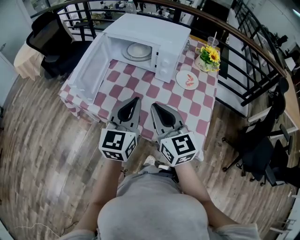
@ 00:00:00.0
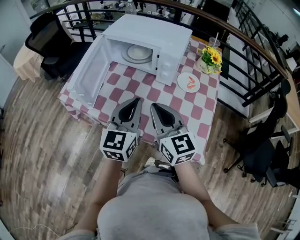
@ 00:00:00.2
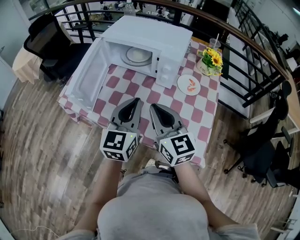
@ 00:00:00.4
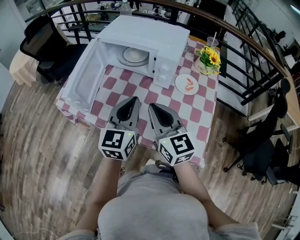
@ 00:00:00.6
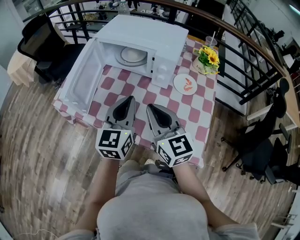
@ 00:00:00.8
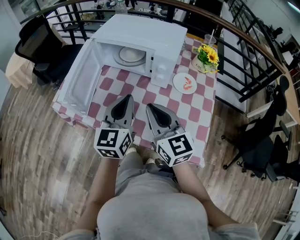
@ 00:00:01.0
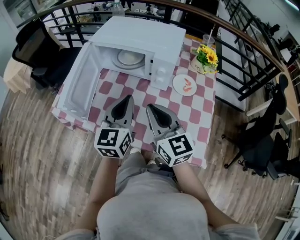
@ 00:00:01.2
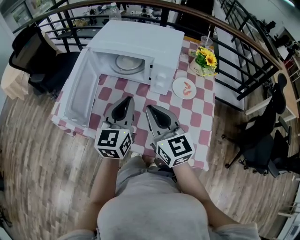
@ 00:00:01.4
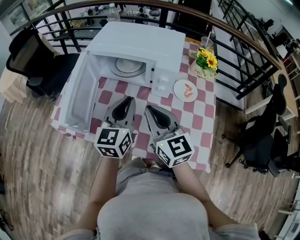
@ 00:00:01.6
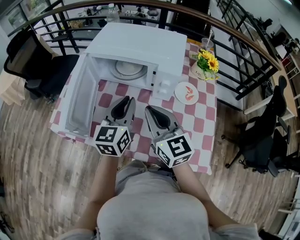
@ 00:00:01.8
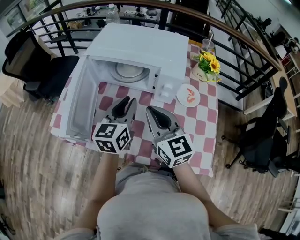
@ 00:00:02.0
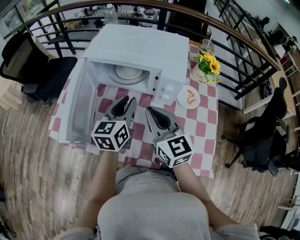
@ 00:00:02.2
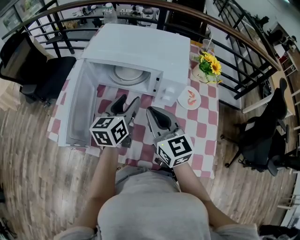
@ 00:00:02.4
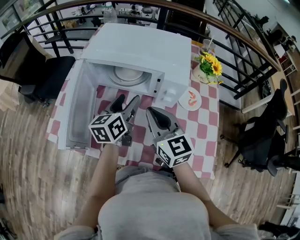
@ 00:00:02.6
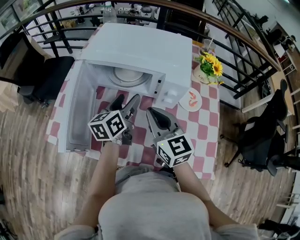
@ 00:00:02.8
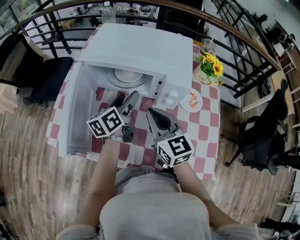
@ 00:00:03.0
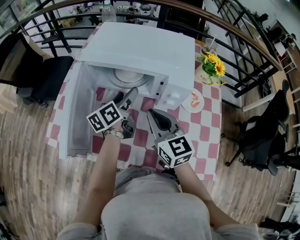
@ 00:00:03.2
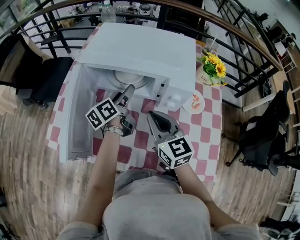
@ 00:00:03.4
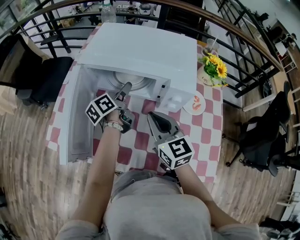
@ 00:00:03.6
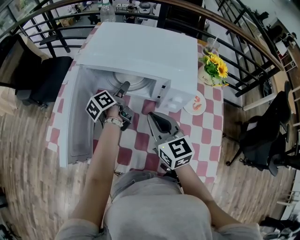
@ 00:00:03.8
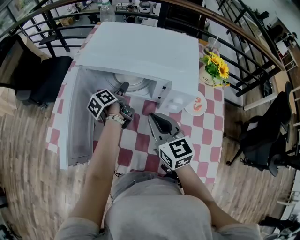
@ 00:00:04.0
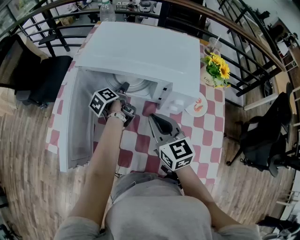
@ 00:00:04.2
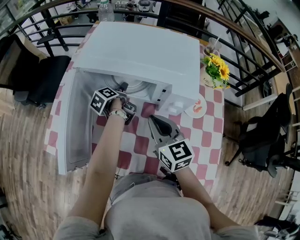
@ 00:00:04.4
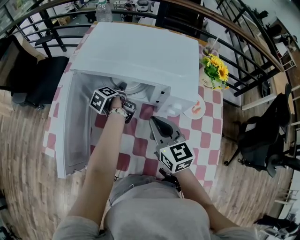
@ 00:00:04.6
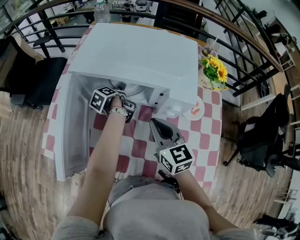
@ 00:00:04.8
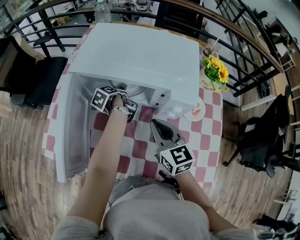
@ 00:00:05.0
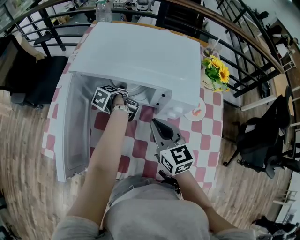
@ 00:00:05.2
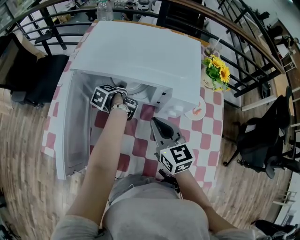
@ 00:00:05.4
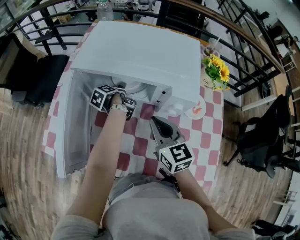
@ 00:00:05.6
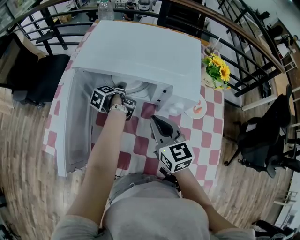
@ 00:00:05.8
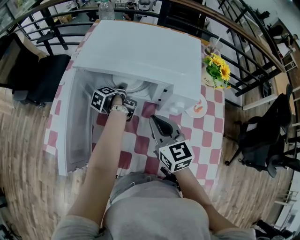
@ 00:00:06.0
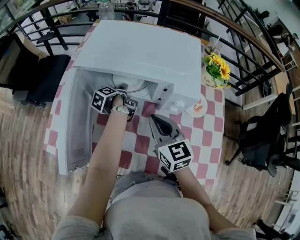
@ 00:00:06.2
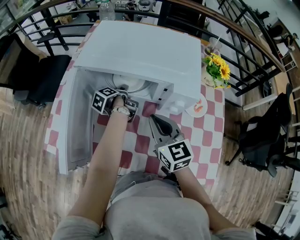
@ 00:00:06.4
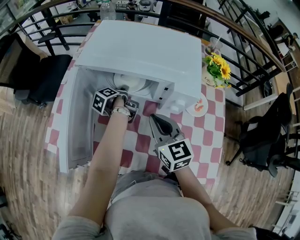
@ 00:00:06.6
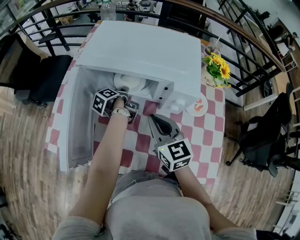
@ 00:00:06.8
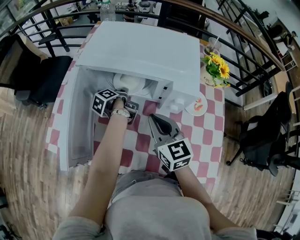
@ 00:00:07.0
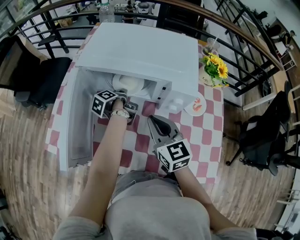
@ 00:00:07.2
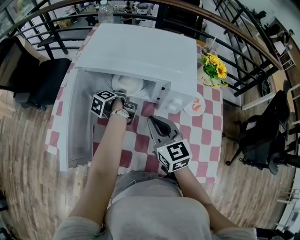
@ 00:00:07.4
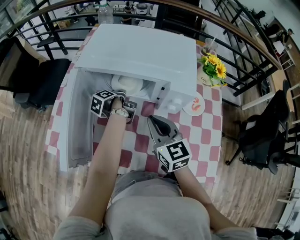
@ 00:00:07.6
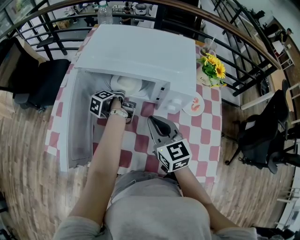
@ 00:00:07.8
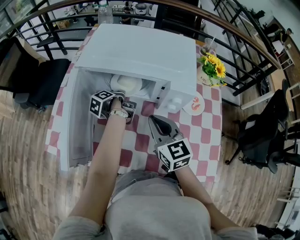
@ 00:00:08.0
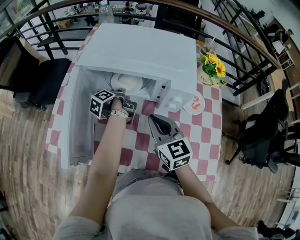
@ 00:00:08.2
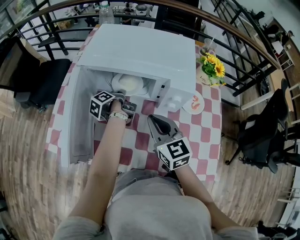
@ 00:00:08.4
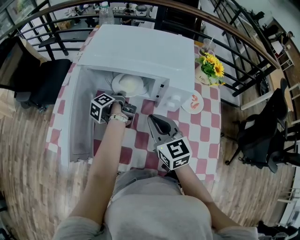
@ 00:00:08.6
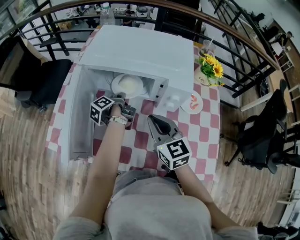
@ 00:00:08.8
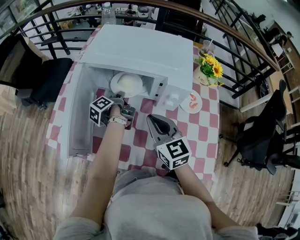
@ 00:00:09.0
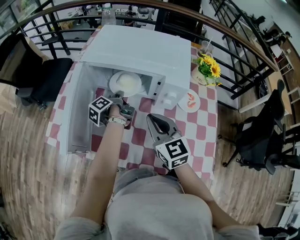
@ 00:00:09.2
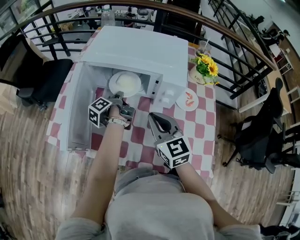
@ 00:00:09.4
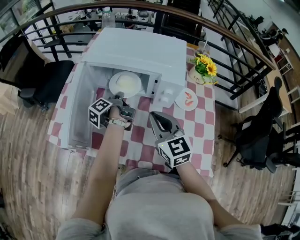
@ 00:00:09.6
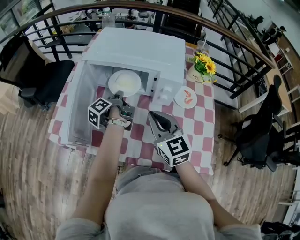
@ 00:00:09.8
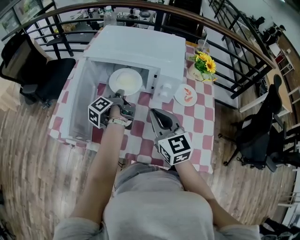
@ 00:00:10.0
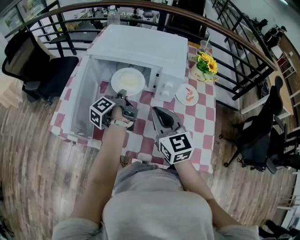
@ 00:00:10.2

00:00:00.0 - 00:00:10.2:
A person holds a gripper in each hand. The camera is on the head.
00:00:00.0 - 00:00:01.4: Both grippers move forward, about 10 cm.
00:00:01.4 - 00:00:03.0: The right gripper goes some 10 cm forward. Meanwhile the left gripper is displaced forward and downward by roughly 20 cm, rotates about 40 degrees, and opens.
00:00:03.0 - 00:00:04.4: The left gripper travels downward and forward by about 15 cm, and rotates roughly 50 degrees. Meanwhile the right gripper shifts by about 5 cm.
00:00:04.4 - 00:00:05.8: The grippers move only a little.
00:00:05.8 - 00:00:07.2: The left gripper closes.
00:00:07.2 - 00:00:08.8: The grippers move only a little.
00:00:08.8 - 00:00:10.2: The left gripper goes approximately 10 cm backward and upward. Meanwhile the right gripper moves backward, about 5 cm.

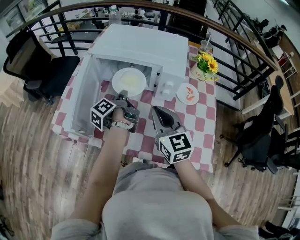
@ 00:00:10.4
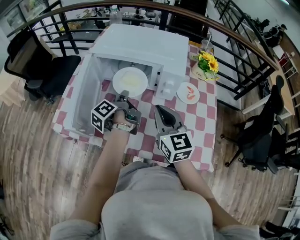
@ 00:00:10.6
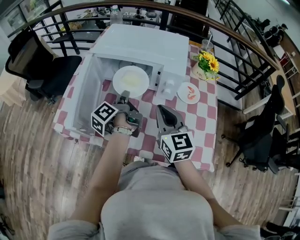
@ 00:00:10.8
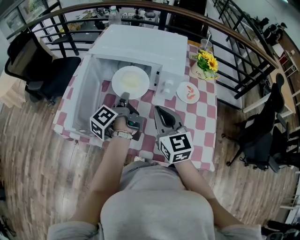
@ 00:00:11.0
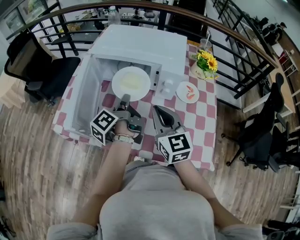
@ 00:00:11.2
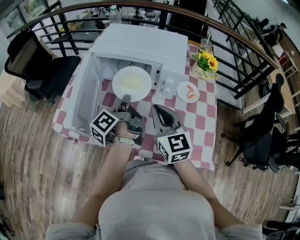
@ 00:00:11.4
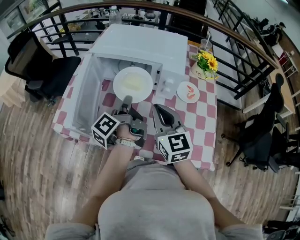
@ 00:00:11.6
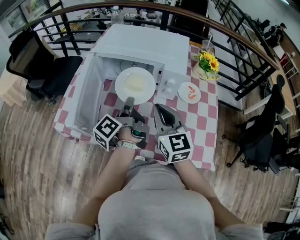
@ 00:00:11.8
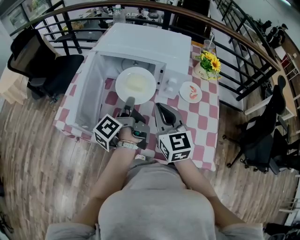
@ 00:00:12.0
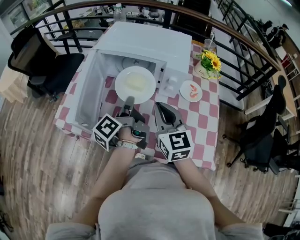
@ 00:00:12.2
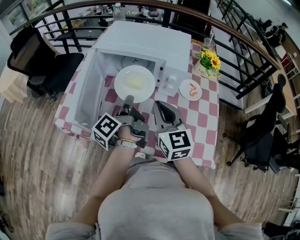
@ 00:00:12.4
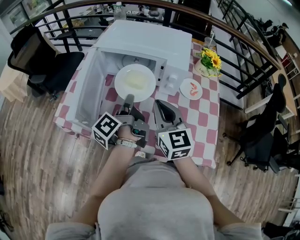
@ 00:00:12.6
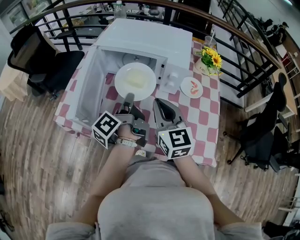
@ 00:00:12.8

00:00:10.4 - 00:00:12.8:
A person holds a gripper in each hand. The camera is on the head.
00:00:10.4 - 00:00:11.6: The left gripper moves backward and upward, roughly 10 cm.
00:00:11.6 - 00:00:12.8: There are only small adjustments of the grippers.

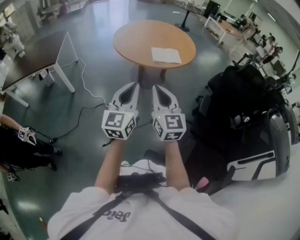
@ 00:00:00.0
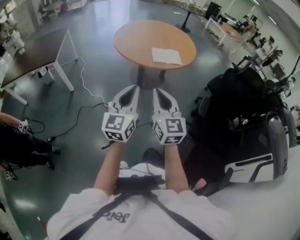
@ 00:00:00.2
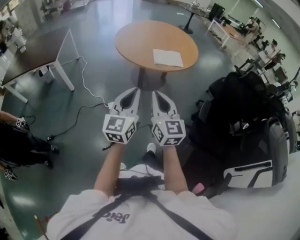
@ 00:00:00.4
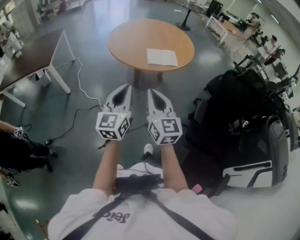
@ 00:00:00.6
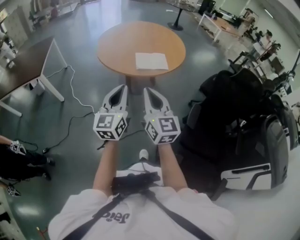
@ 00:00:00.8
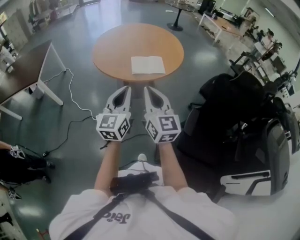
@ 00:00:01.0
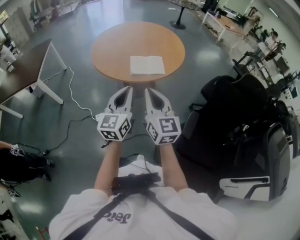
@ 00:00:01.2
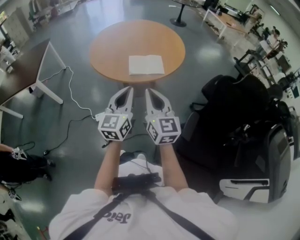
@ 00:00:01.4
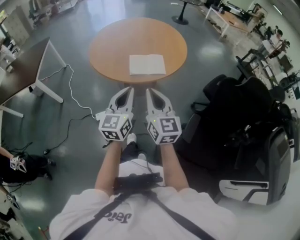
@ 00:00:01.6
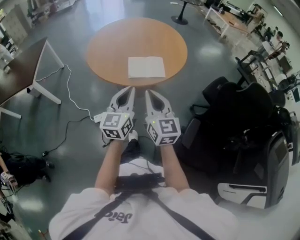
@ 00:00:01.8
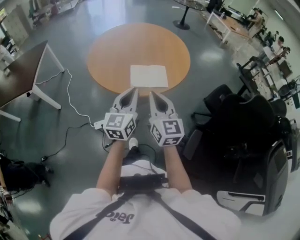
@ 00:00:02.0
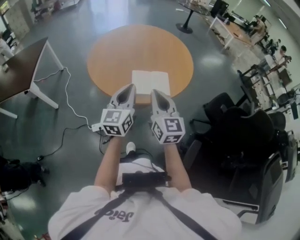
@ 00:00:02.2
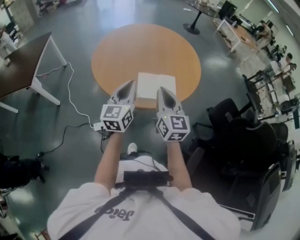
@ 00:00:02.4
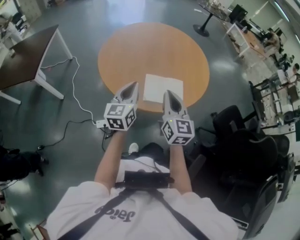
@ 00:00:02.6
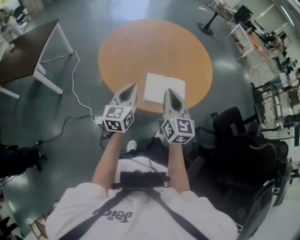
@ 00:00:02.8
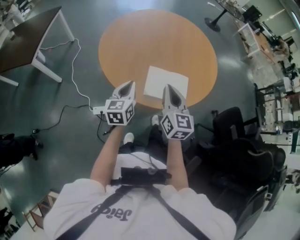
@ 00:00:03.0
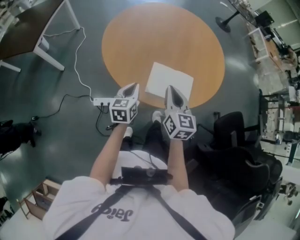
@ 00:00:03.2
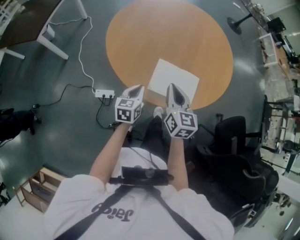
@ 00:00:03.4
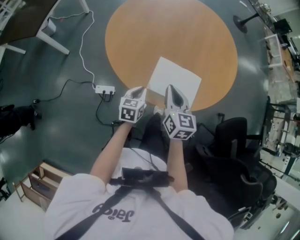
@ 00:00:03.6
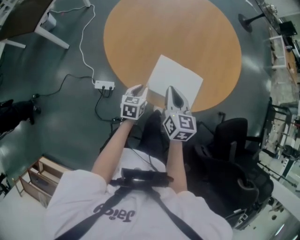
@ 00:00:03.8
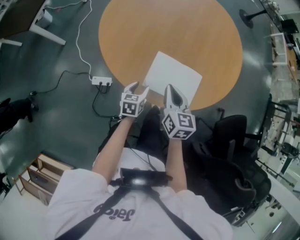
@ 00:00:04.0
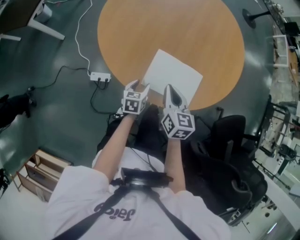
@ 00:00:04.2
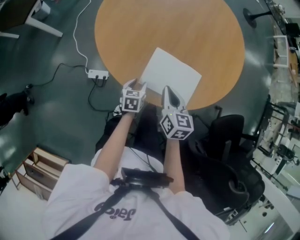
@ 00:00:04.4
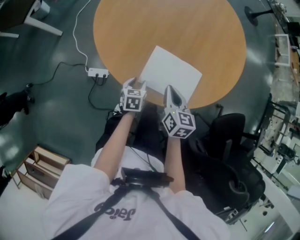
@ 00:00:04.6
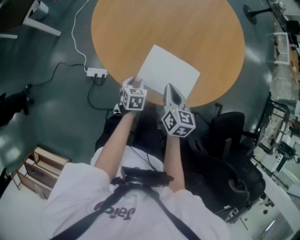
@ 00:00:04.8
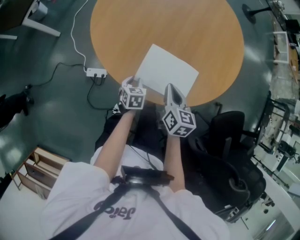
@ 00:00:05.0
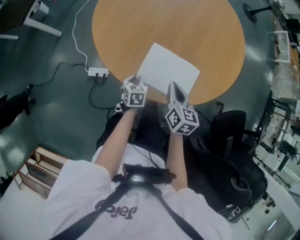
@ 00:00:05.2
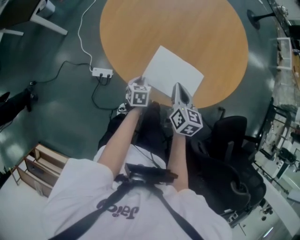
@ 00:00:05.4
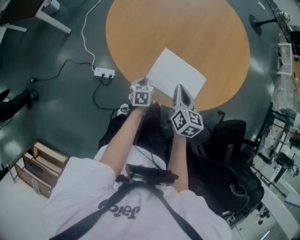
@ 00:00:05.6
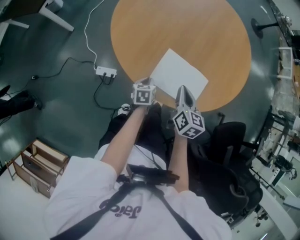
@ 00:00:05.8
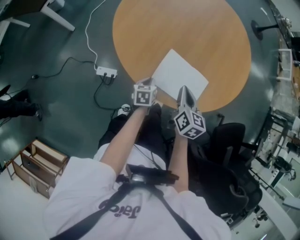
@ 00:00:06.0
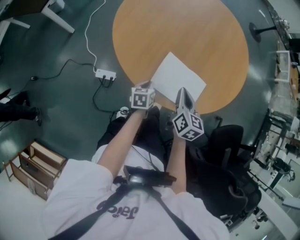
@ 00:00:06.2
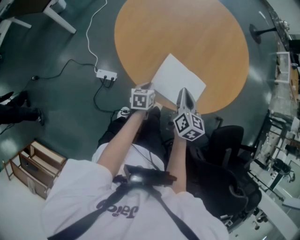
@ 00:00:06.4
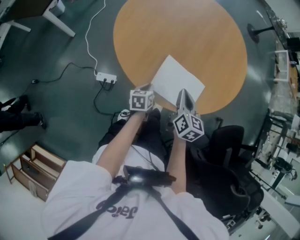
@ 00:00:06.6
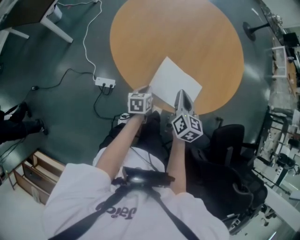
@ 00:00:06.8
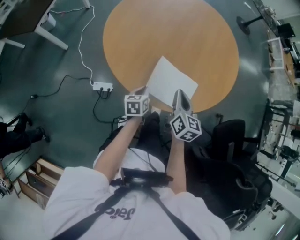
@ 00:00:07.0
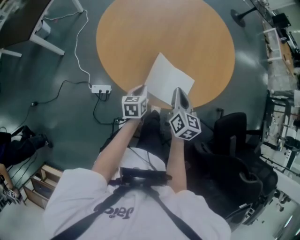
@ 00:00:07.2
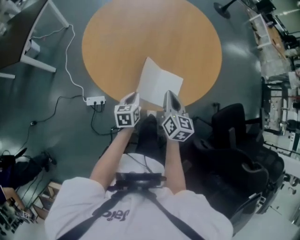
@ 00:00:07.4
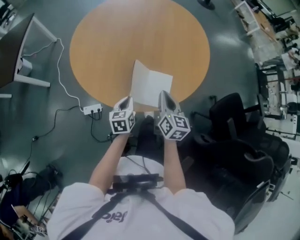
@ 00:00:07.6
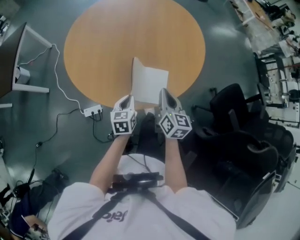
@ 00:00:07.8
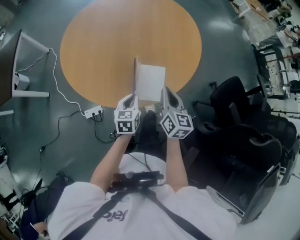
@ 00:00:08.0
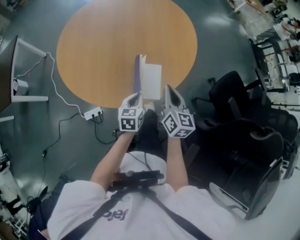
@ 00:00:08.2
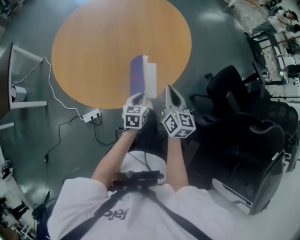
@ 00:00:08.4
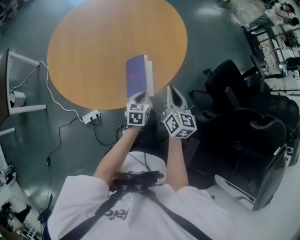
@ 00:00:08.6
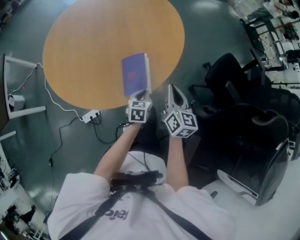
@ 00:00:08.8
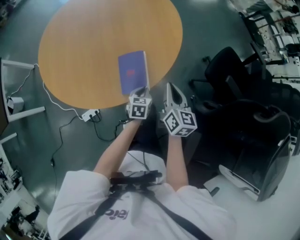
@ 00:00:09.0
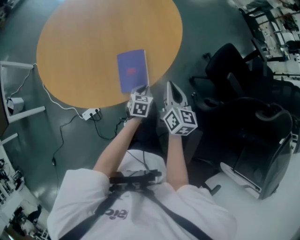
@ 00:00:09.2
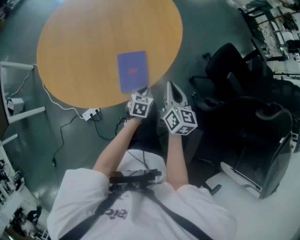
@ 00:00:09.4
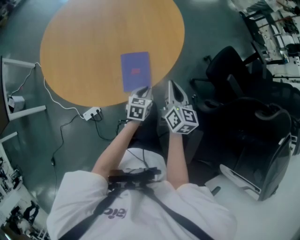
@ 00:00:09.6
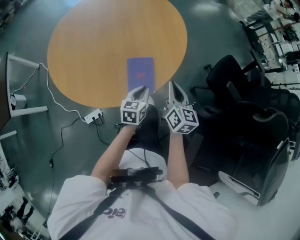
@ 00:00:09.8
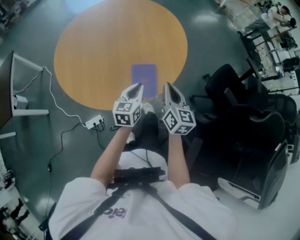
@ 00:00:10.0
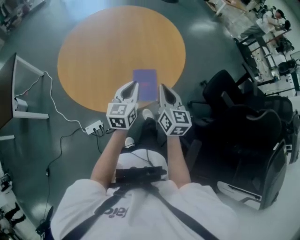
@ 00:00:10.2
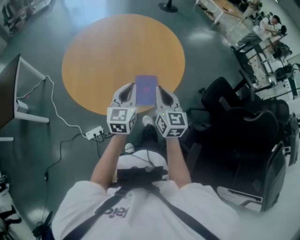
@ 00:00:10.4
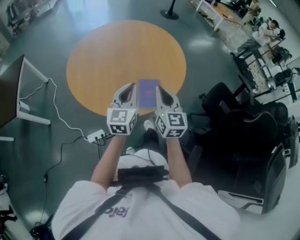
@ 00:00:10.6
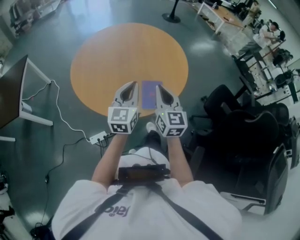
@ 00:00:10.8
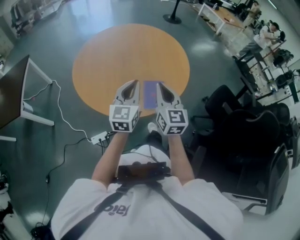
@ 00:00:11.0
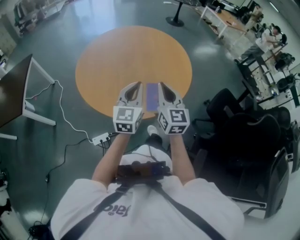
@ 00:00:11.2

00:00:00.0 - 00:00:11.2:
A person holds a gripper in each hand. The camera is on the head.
00:00:00.0 - 00:00:01.6: Both grippers travel together forward and to the right, some 30 cm.
00:00:01.6 - 00:00:03.2: The left gripper is displaced forward and downward by some 35 cm, and changes its angle by approximately 30 degrees. Meanwhile the right gripper goes about 35 cm forward.
00:00:03.2 - 00:00:04.8: The left gripper heads downward, covering roughly 20 cm, rotates approximately 30 degrees, and opens; the right gripper travels downward and to the right by some 15 cm, and rotates approximately 20 degrees.
00:00:04.8 - 00:00:06.4: The left gripper changes its angle by roughly 20 degrees, and closes up.
00:00:06.4 - 00:00:08.0: The right gripper travels to the right by some 10 cm, and turns by roughly 20 degrees. Meanwhile the left gripper heads upward and to the right, covering some 15 cm, and rotates about 30 degrees.
00:00:08.0 - 00:00:09.6: The right gripper moves to the right, approximately 10 cm, while the left gripper shifts roughly 15 cm to the right and downward, and turns by about 20 degrees.
00:00:09.6 - 00:00:11.2: The left gripper shifts about 35 cm upward and to the left, and points its fingers some 40 degrees further upward; the right gripper moves upward and to the left, roughly 25 cm, and changes its angle by some 30 degrees.
